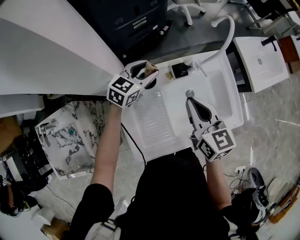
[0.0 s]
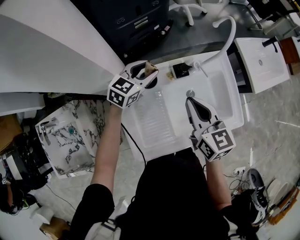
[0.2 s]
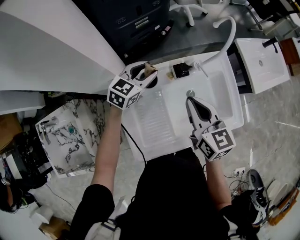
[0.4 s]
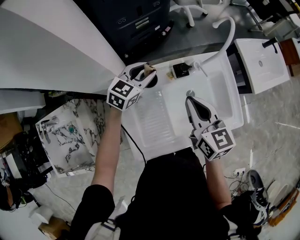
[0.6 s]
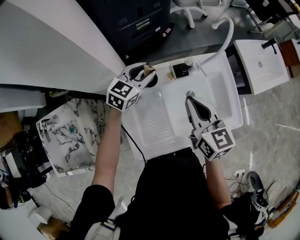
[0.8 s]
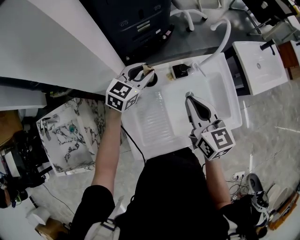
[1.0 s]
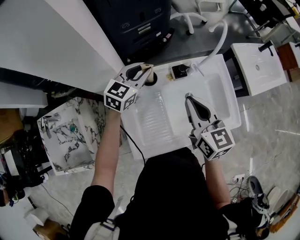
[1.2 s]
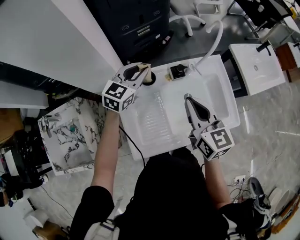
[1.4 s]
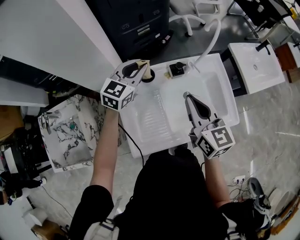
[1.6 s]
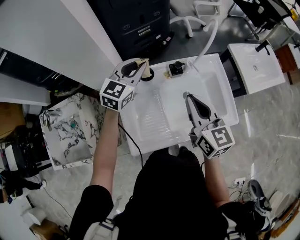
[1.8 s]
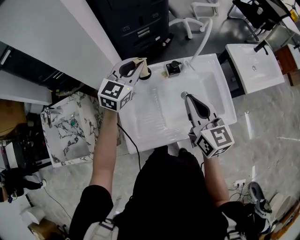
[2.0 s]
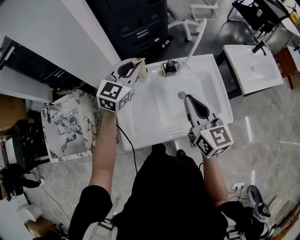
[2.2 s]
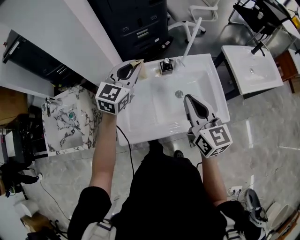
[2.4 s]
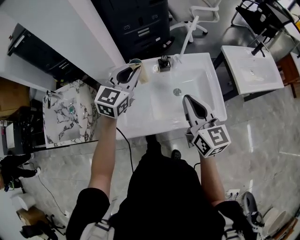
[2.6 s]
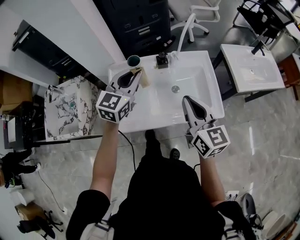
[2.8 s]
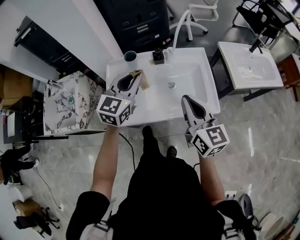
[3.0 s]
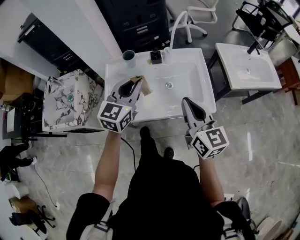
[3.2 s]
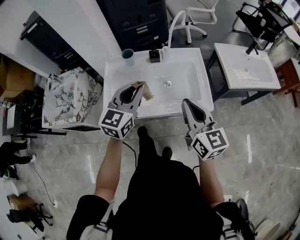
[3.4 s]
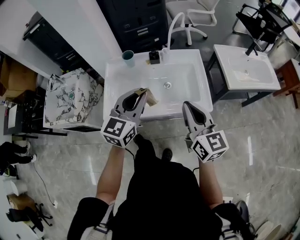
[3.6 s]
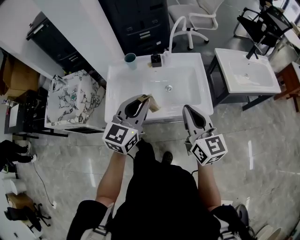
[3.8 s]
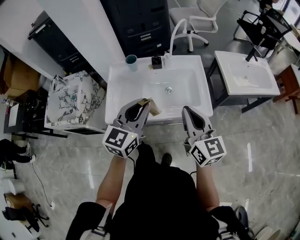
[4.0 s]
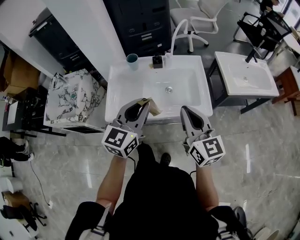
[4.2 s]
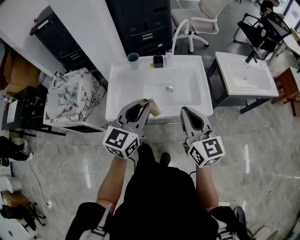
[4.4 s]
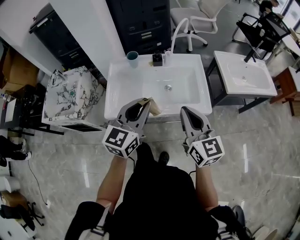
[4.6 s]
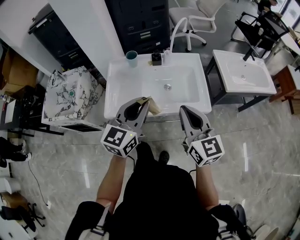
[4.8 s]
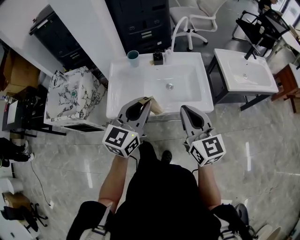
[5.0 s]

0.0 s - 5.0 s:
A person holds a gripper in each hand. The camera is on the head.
0.0 s - 1.6 s: The left gripper goes approximately 10 cm upward, and closes. The right gripper shifts by approximately 5 cm.
1.6 s - 3.4 s: The right gripper heads to the right and backward, covering approximately 25 cm; the left gripper moves backward and to the right, approximately 30 cm, and changes its angle by roughly 20 degrees.
3.4 s - 5.0 s: The left gripper goes about 10 cm backward. Meanwhile the right gripper moves backward, some 5 cm.

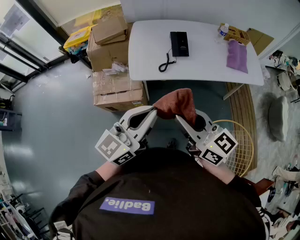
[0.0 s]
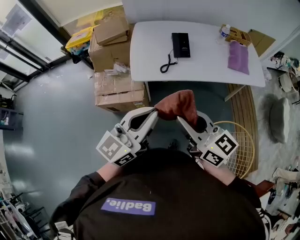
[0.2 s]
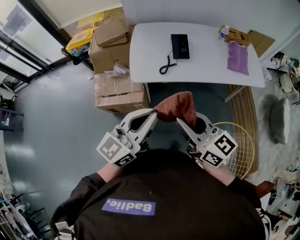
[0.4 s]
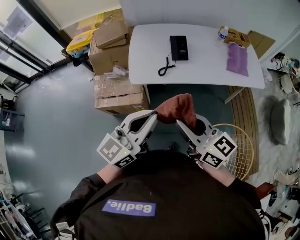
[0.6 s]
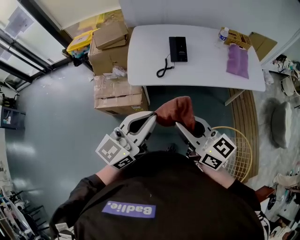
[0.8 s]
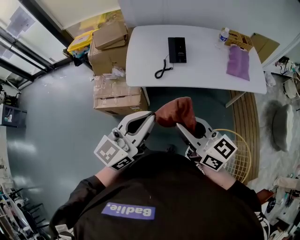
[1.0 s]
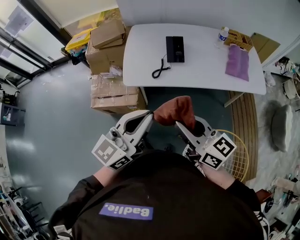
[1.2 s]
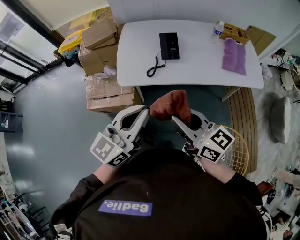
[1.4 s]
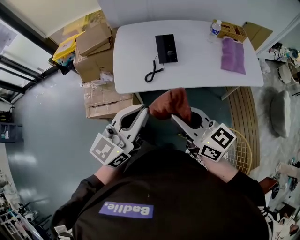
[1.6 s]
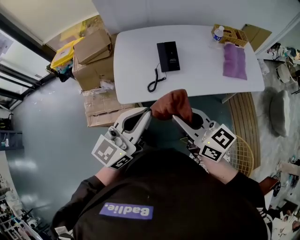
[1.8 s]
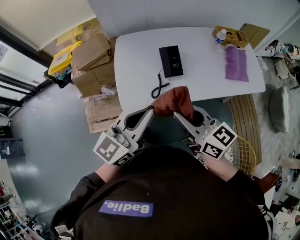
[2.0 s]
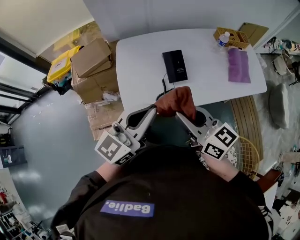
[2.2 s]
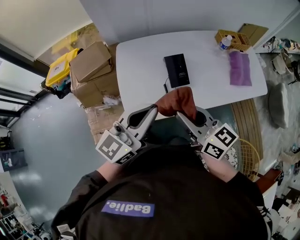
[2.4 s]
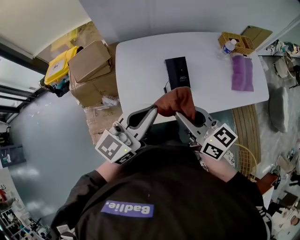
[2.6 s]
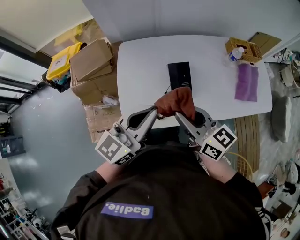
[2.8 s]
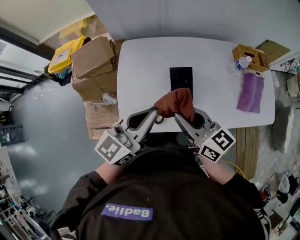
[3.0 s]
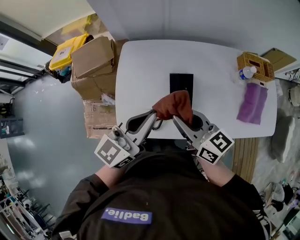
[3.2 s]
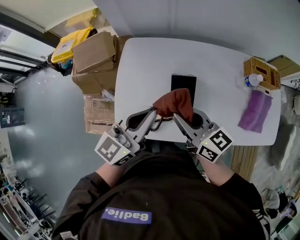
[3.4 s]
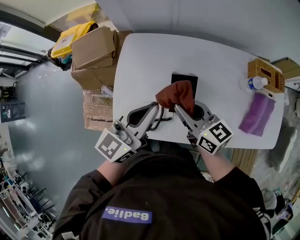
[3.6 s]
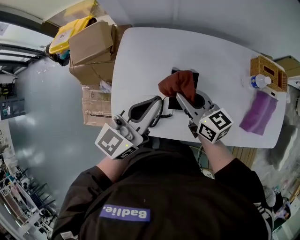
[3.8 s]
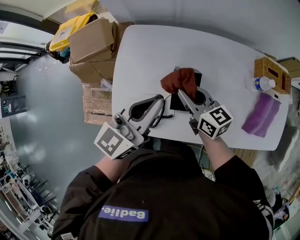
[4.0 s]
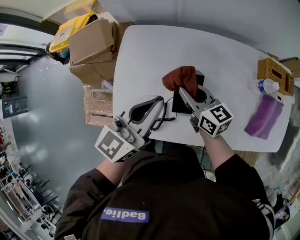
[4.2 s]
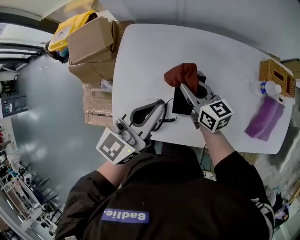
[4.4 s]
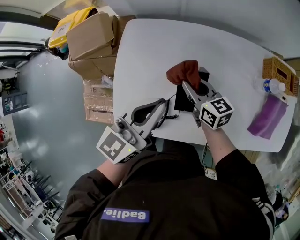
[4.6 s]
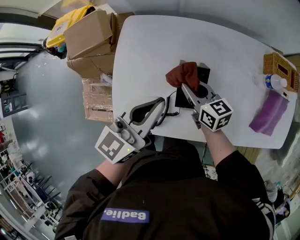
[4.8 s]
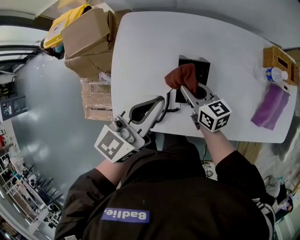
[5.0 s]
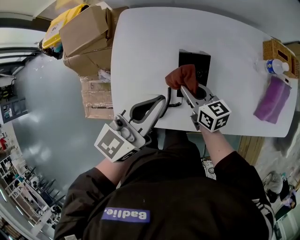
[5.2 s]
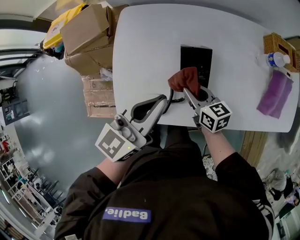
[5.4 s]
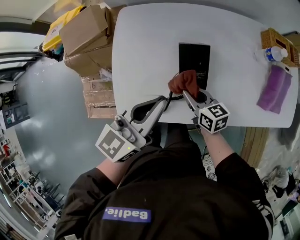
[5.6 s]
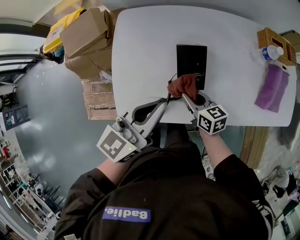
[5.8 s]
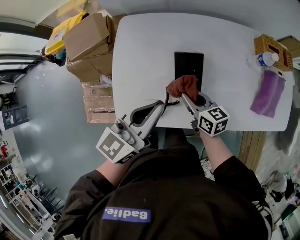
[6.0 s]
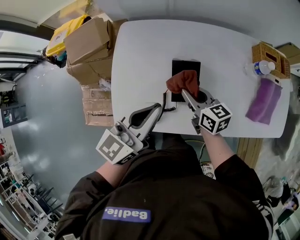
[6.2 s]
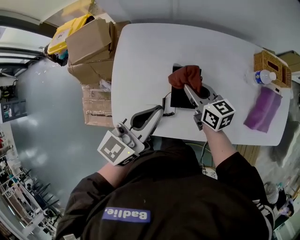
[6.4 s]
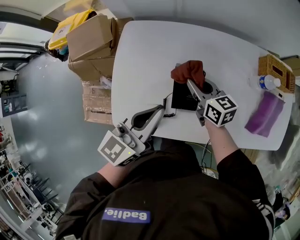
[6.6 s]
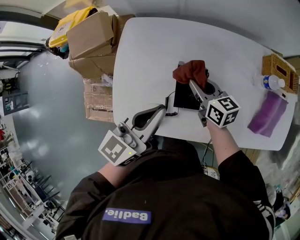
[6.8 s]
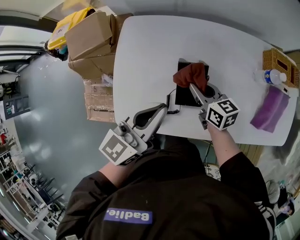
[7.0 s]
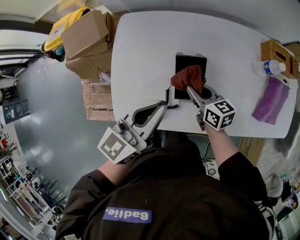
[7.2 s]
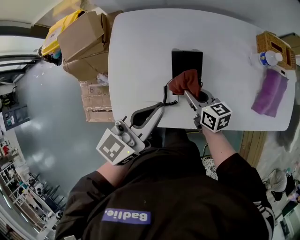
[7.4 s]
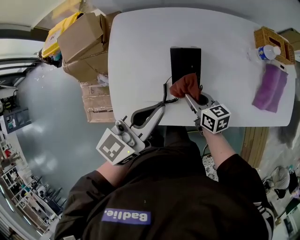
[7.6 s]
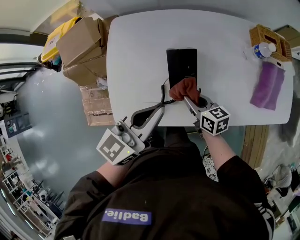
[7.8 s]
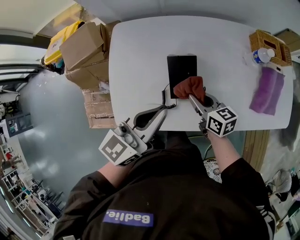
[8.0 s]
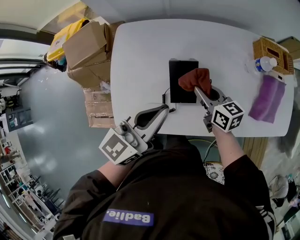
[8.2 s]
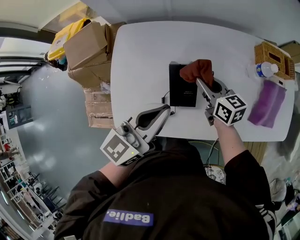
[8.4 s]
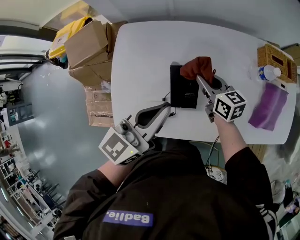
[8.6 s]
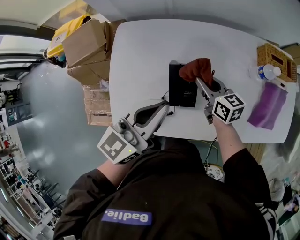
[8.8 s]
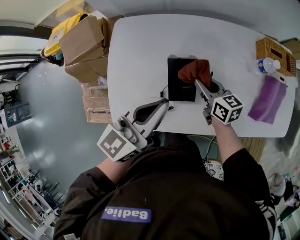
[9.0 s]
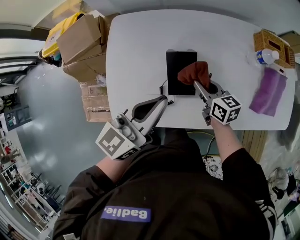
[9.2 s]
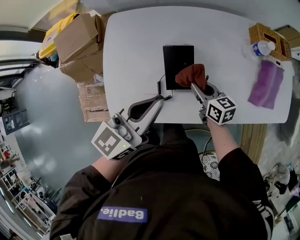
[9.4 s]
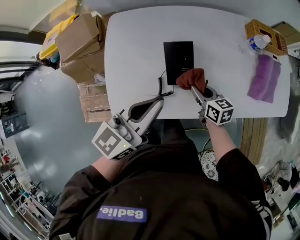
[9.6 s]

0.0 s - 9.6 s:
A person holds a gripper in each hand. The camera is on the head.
0.0 s - 1.6 s: The grippers both shift forward and to the right by roughly 10 cm.
1.6 s - 3.2 s: The two grippers go roughly 30 cm forward.
3.2 s - 4.8 s: The left gripper travels forward and downward by about 10 cm. Meanwhile the right gripper goes about 20 cm downward and forward.
4.8 s - 6.4 s: The right gripper goes backward and returns, some 10 cm each way.
6.4 s - 8.0 s: The right gripper goes roughly 10 cm backward.
8.0 s - 9.6 s: The right gripper travels forward and back again, roughly 10 cm each way.

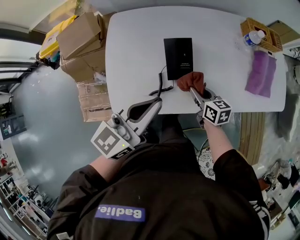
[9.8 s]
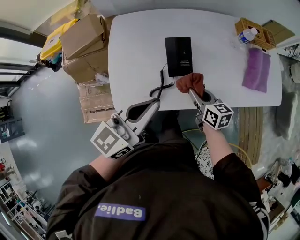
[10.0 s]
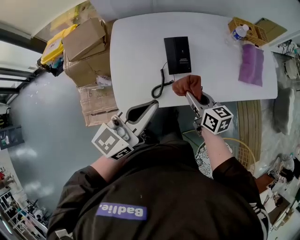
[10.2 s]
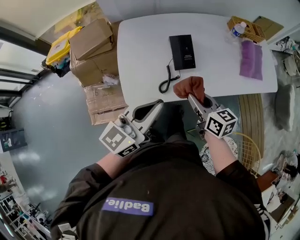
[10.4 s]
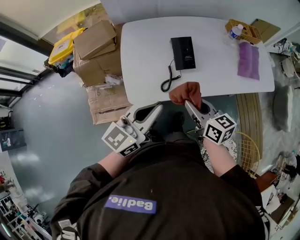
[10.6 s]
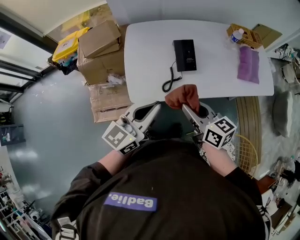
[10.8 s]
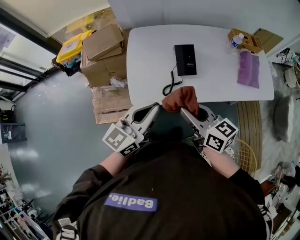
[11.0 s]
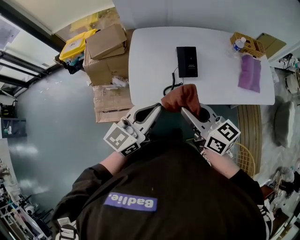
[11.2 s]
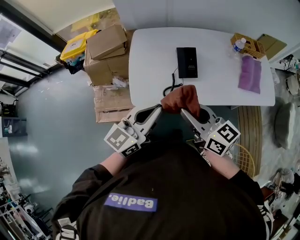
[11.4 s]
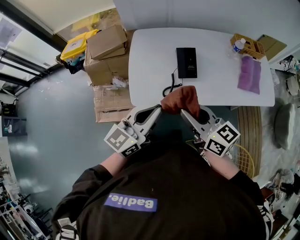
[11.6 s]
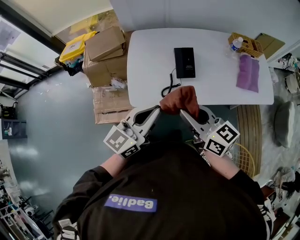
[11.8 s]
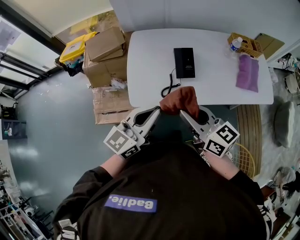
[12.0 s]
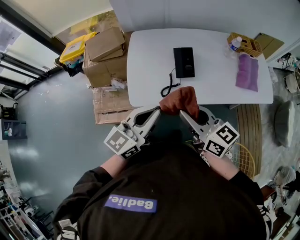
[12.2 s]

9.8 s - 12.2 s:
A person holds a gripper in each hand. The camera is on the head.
9.8 s - 11.0 s: The right gripper moves upward, backward and to the left, some 35 cm, and turns by some 20 degrees. The left gripper travels backward and to the left by approximately 15 cm.
11.0 s - 12.2 s: The grippers make only small movements.

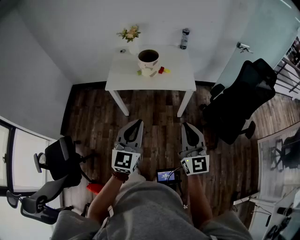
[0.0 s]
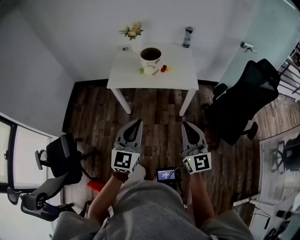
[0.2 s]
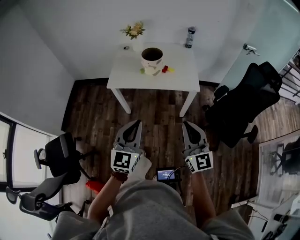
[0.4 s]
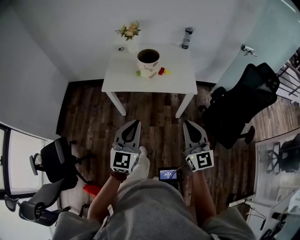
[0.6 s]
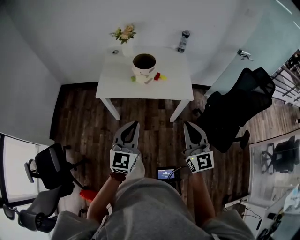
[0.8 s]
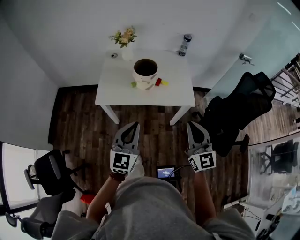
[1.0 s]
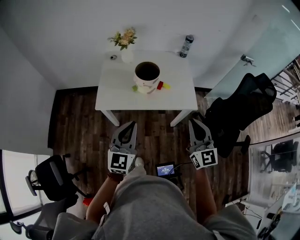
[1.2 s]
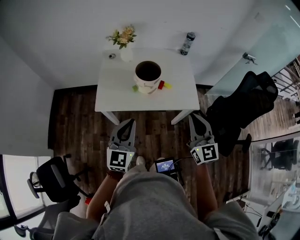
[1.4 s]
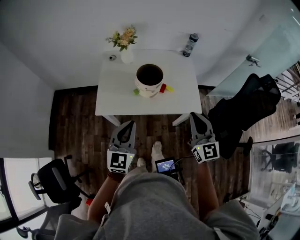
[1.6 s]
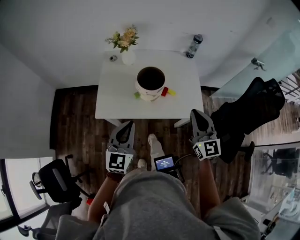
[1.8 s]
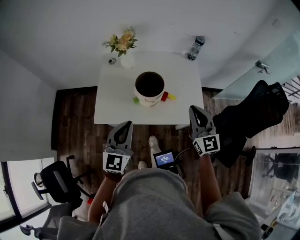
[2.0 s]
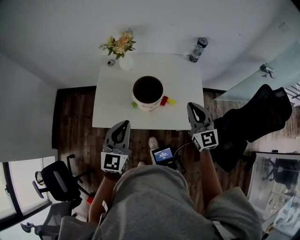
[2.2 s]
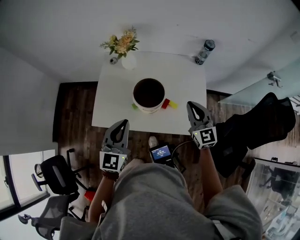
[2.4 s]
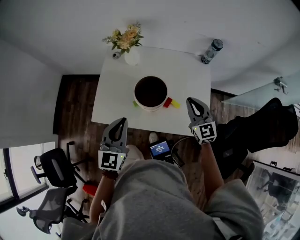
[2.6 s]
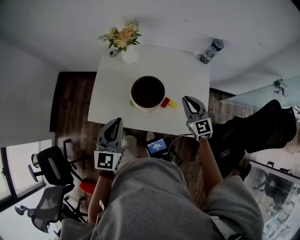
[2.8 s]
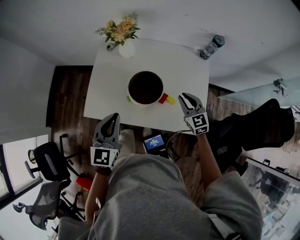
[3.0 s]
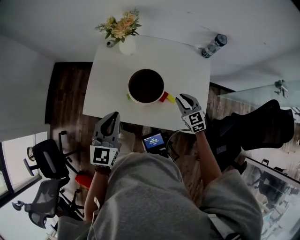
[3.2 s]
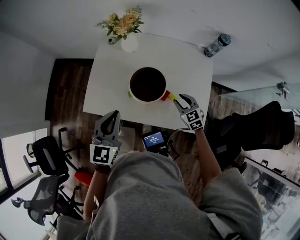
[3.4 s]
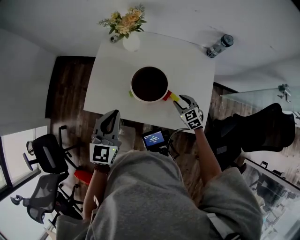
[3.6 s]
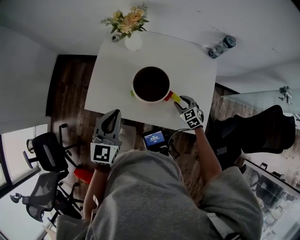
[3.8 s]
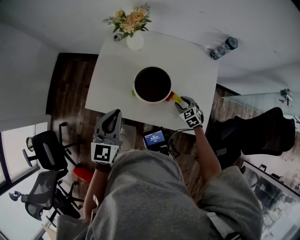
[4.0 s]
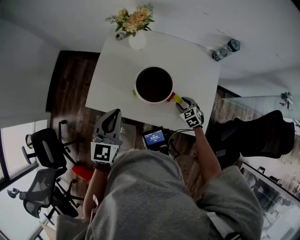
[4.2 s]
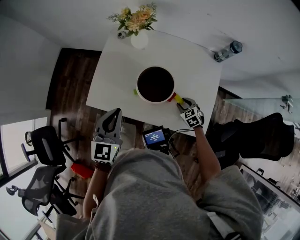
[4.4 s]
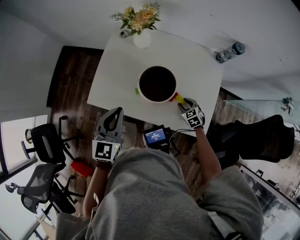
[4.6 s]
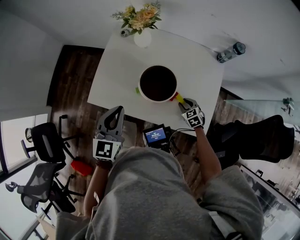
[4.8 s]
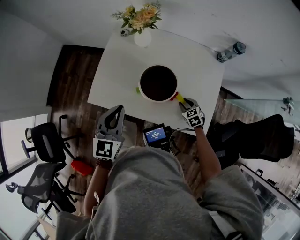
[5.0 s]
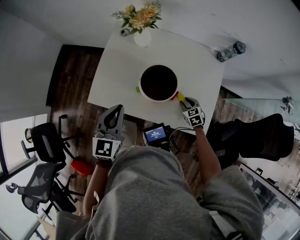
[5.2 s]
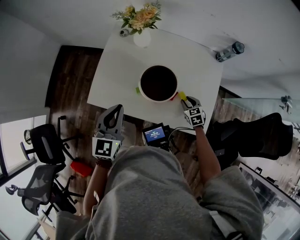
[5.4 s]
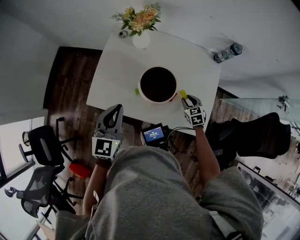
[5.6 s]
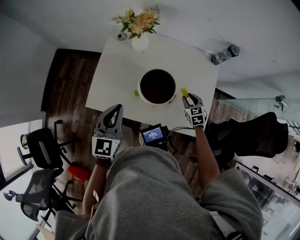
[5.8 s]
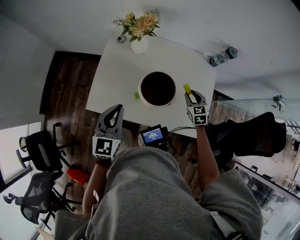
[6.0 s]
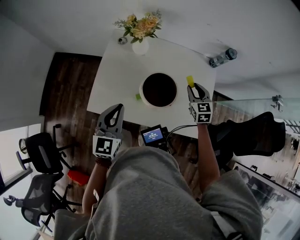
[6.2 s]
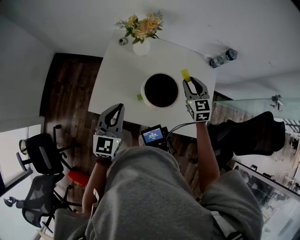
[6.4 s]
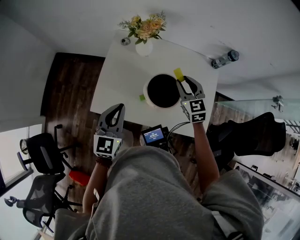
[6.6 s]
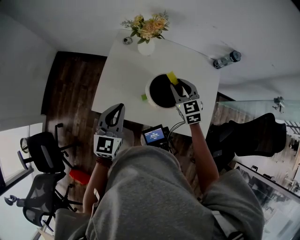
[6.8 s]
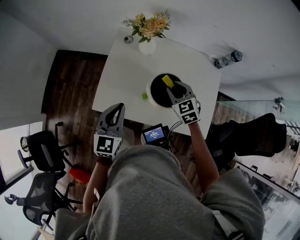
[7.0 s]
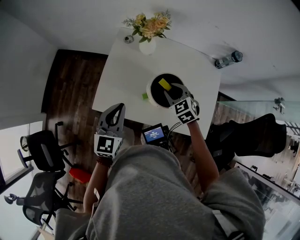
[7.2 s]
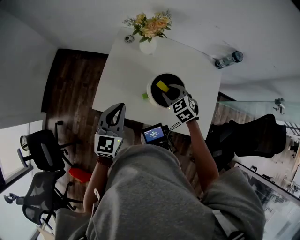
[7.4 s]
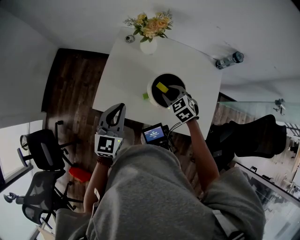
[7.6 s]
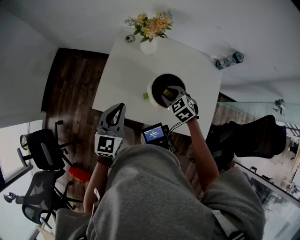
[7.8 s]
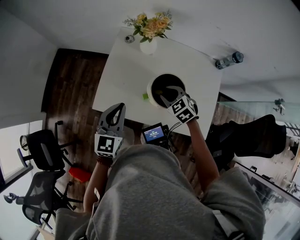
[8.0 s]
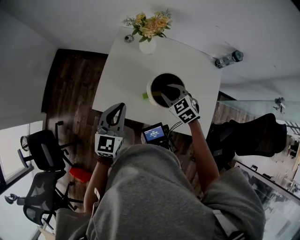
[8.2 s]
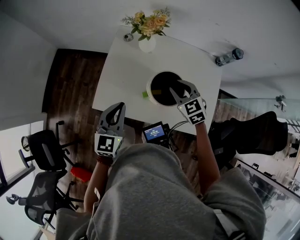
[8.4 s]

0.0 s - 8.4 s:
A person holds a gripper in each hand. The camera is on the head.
0.0 s - 1.4 s: The two grippers go approximately 30 cm forward.
1.4 s - 2.8 s: The right gripper is displaced forward and downward by about 35 cm, and changes its angle by roughly 20 degrees. The left gripper shifts approximately 20 cm forward.
2.8 s - 4.2 s: The right gripper is displaced downward by some 25 cm, tilts its fingers about 40 degrees downward, and opens up.
4.2 s - 5.6 s: The grippers make only small movements.
5.6 s - 7.0 s: The right gripper heads to the left and upward, covering about 25 cm. Meanwhile the left gripper moves roughly 5 cm.
7.0 s - 8.4 s: The grippers move only a little.
